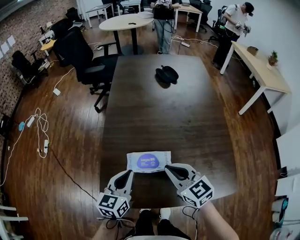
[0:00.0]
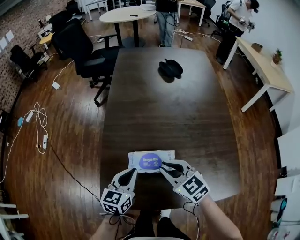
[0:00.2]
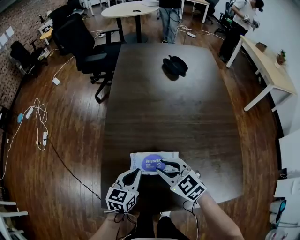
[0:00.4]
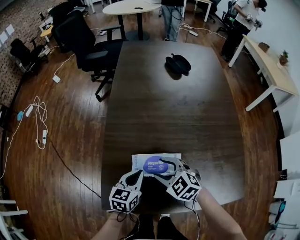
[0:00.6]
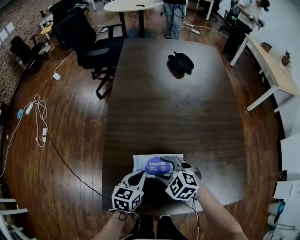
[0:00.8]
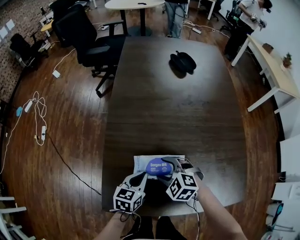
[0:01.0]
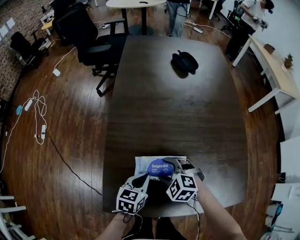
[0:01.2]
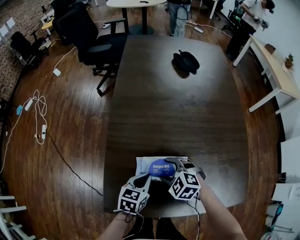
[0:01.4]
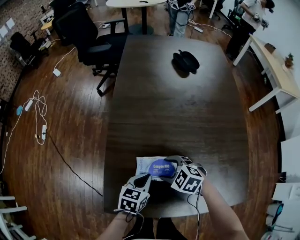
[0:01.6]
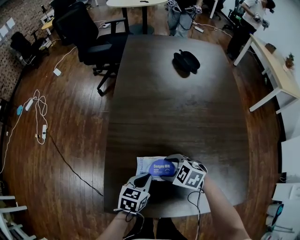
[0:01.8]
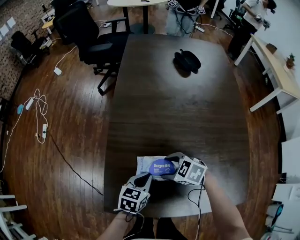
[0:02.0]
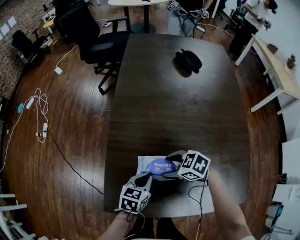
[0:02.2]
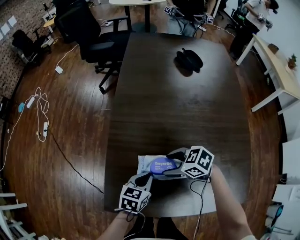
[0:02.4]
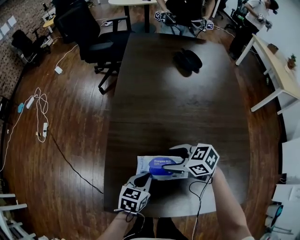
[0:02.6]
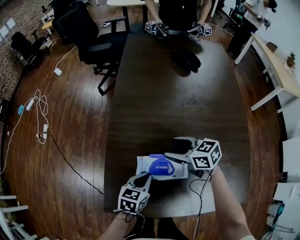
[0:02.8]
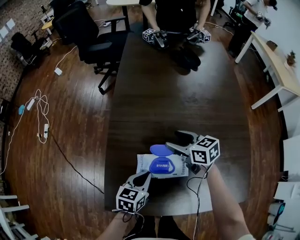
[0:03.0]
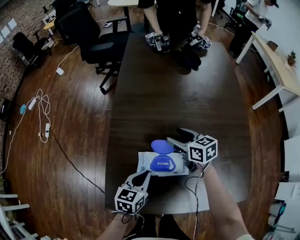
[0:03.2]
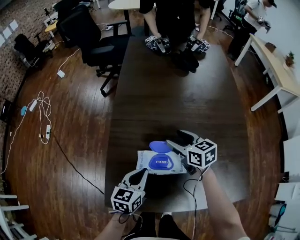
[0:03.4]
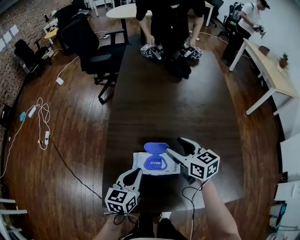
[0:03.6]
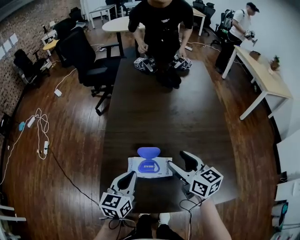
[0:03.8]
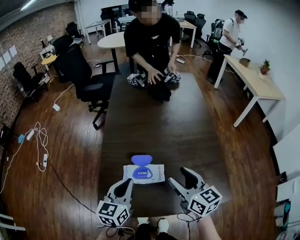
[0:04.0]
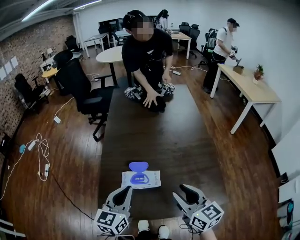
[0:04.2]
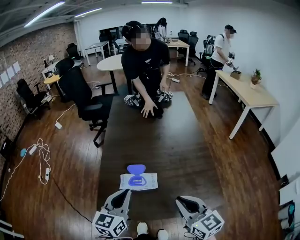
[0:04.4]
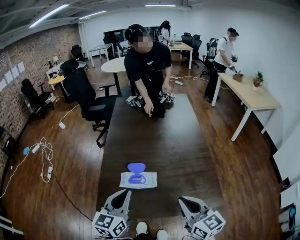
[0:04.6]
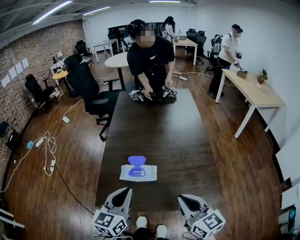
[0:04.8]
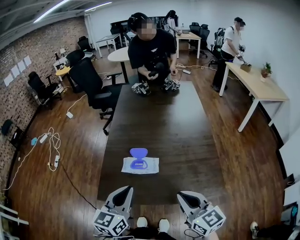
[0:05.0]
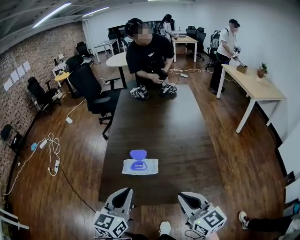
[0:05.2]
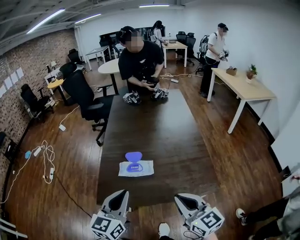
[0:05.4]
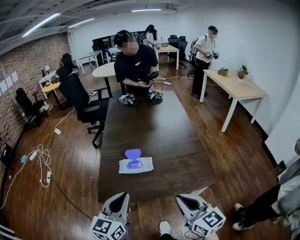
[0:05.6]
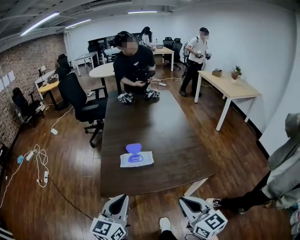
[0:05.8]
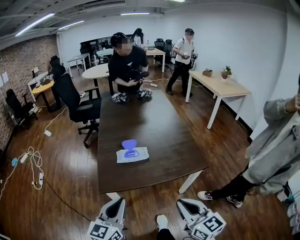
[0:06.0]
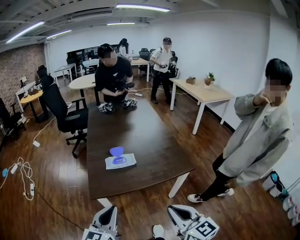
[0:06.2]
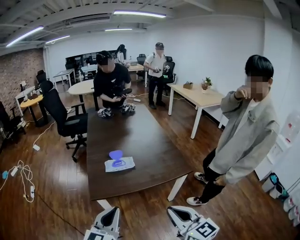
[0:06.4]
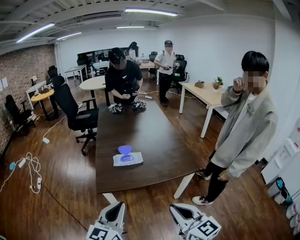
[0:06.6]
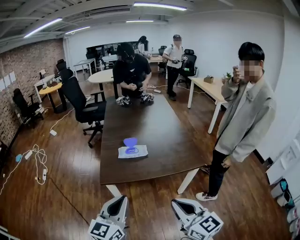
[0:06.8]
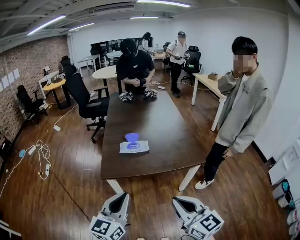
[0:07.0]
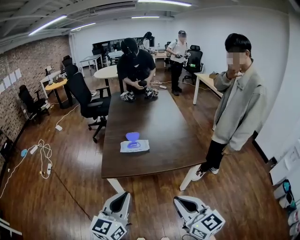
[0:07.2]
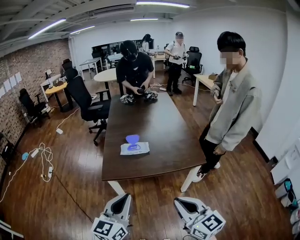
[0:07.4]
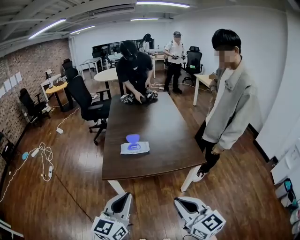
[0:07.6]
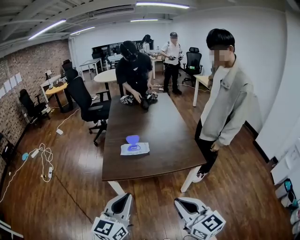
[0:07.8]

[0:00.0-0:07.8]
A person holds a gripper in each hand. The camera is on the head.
0:00.0 to 0:01.6: The grippers both shift downward by roughly 15 cm. The left gripper swivels about 30 degrees. The right gripper points its fingers approximately 40 degrees further downward, and opens.
0:01.6 to 0:03.2: The right gripper shifts by approximately 15 cm, and swivels about 50 degrees.
0:03.2 to 0:04.6: The right gripper moves backward and upward, some 40 cm, turns by approximately 30 degrees, and closes its fingers. Meanwhile the left gripper goes about 30 cm upward and backward, and changes its angle by roughly 30 degrees.
0:04.6 to 0:06.2: Both grippers travel together backward, some 30 cm.
0:06.2 to 0:07.8: The right gripper heads backward, covering some 5 cm. The left gripper travels backward and to the right by approximately 10 cm.

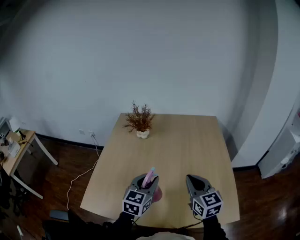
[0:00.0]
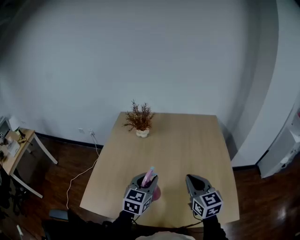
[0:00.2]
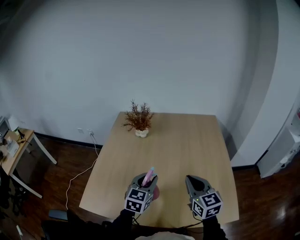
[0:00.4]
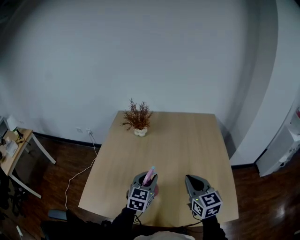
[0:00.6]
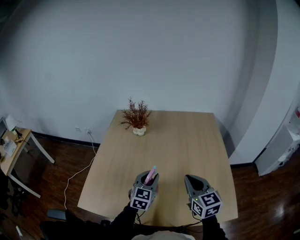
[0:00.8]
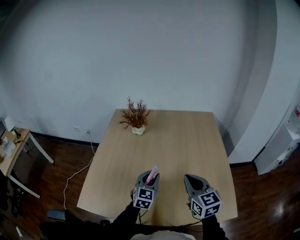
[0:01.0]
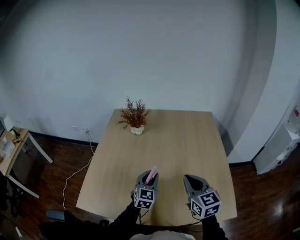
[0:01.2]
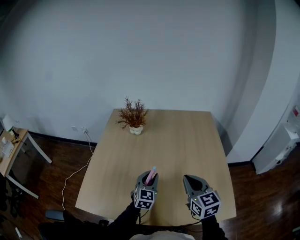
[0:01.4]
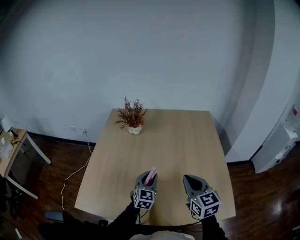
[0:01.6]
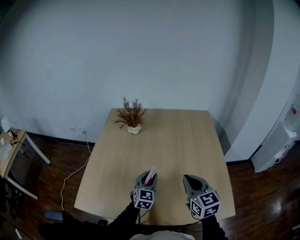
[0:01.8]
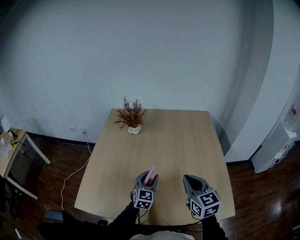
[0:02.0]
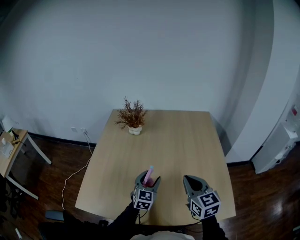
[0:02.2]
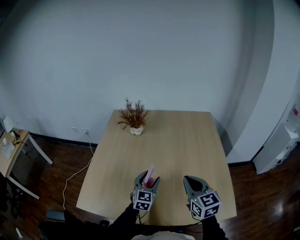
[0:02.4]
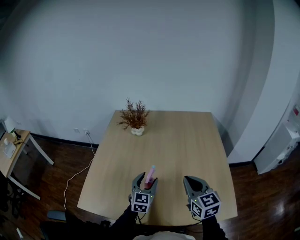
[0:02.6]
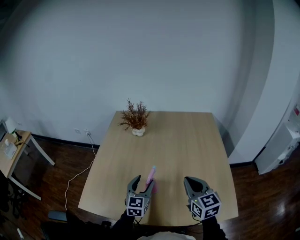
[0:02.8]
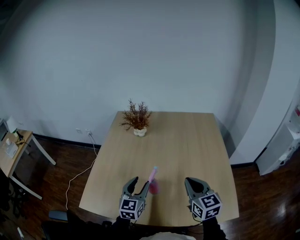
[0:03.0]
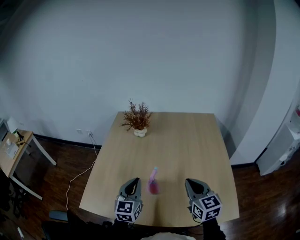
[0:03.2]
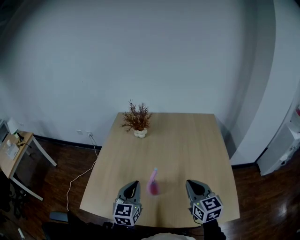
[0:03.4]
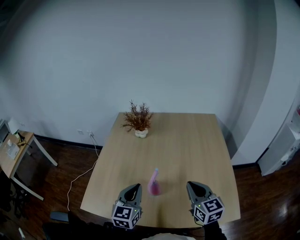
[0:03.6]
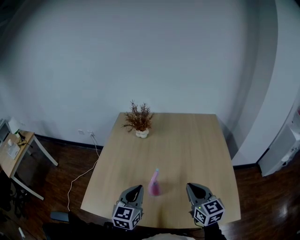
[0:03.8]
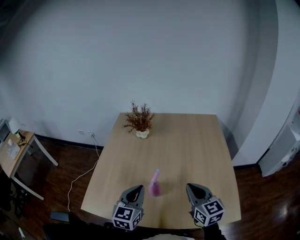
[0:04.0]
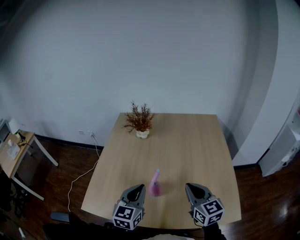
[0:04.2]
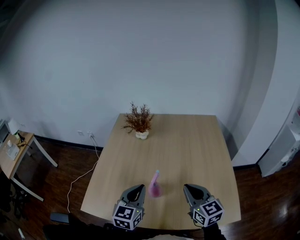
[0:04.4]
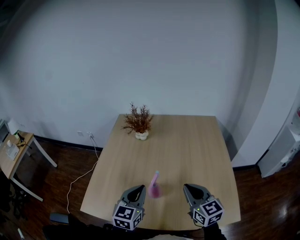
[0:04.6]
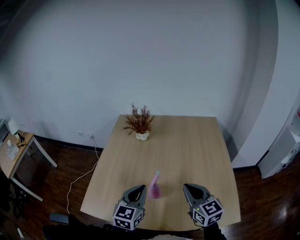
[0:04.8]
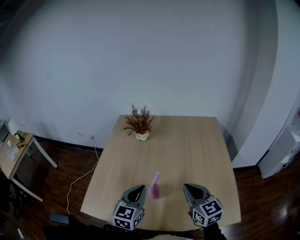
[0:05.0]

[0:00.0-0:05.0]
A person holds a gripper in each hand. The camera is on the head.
0:00.0 to 0:01.6: The left gripper heads downward and forward, covering about 10 cm.
0:01.6 to 0:03.4: The left gripper travels upward, to the left and backward by some 15 cm, and closes.
0:03.4 to 0:05.0: The grippers make only small movements.

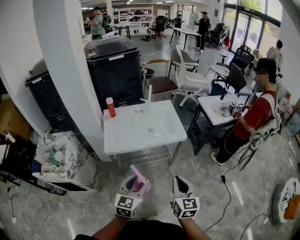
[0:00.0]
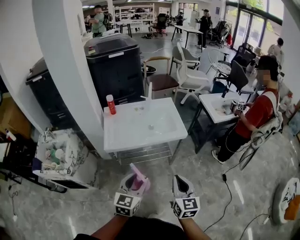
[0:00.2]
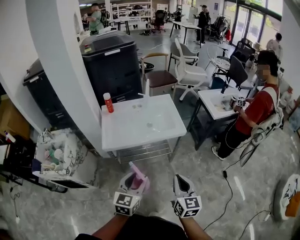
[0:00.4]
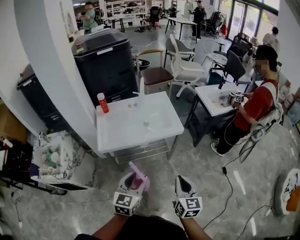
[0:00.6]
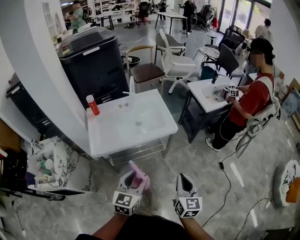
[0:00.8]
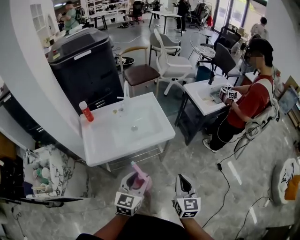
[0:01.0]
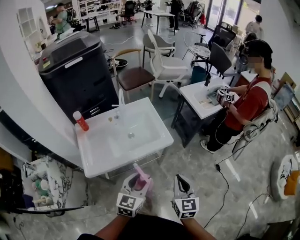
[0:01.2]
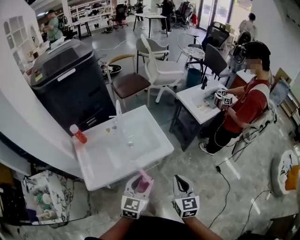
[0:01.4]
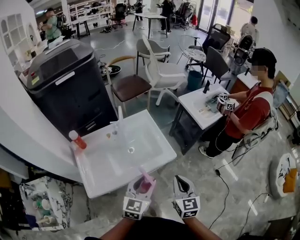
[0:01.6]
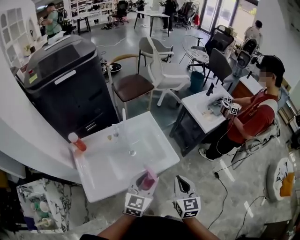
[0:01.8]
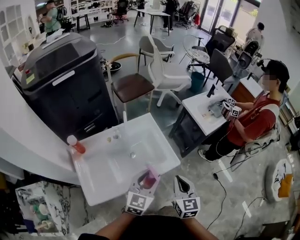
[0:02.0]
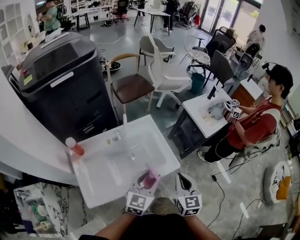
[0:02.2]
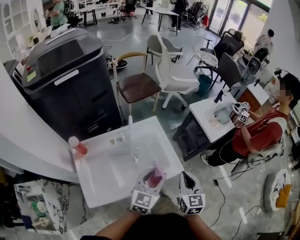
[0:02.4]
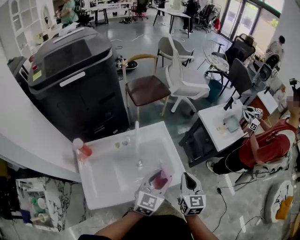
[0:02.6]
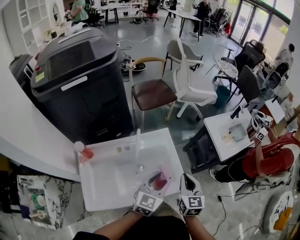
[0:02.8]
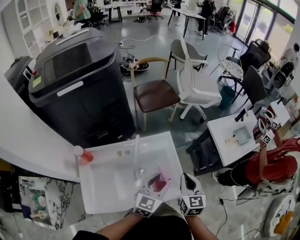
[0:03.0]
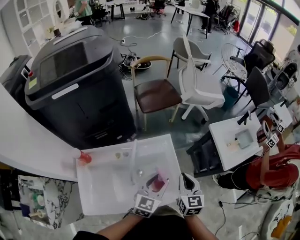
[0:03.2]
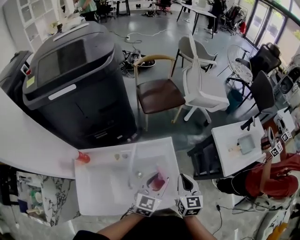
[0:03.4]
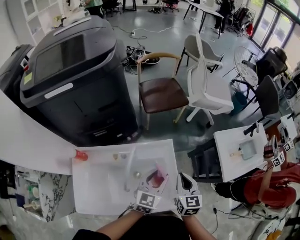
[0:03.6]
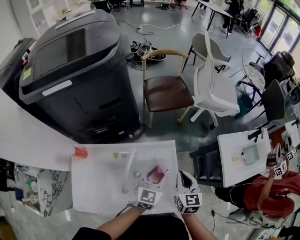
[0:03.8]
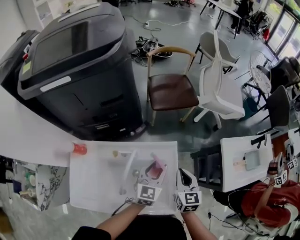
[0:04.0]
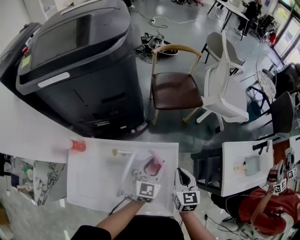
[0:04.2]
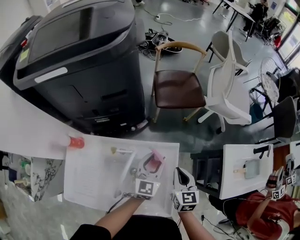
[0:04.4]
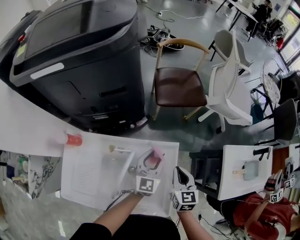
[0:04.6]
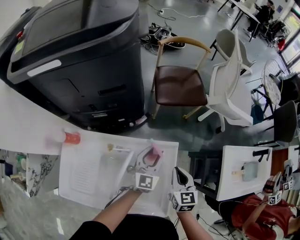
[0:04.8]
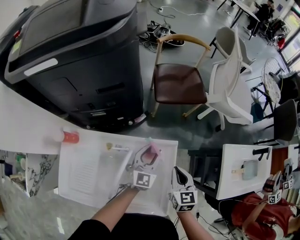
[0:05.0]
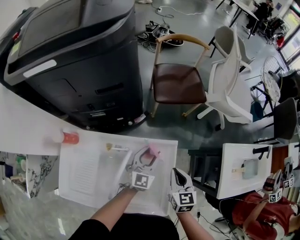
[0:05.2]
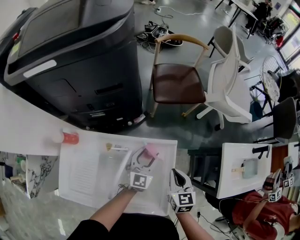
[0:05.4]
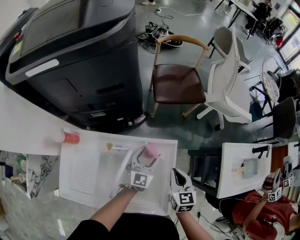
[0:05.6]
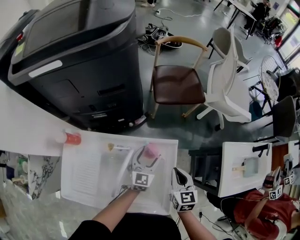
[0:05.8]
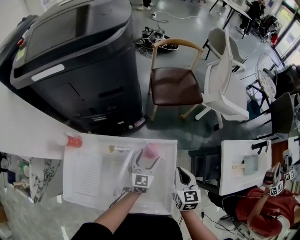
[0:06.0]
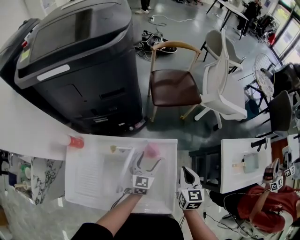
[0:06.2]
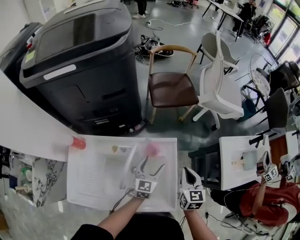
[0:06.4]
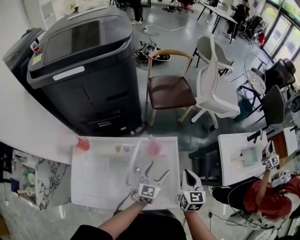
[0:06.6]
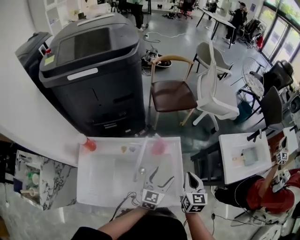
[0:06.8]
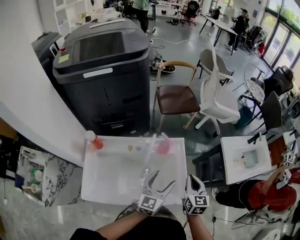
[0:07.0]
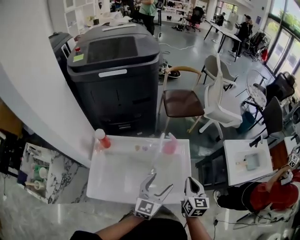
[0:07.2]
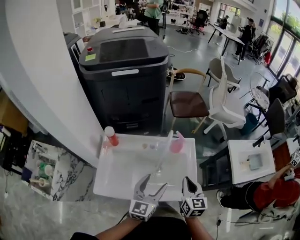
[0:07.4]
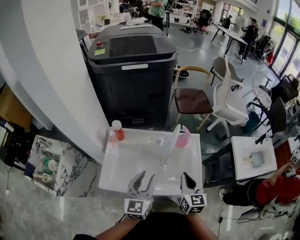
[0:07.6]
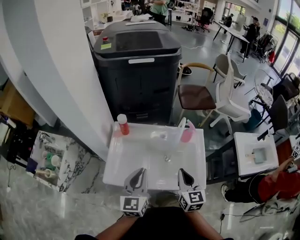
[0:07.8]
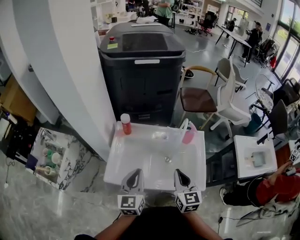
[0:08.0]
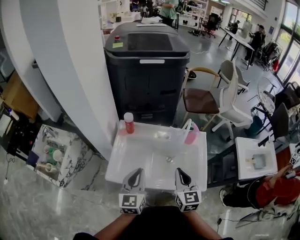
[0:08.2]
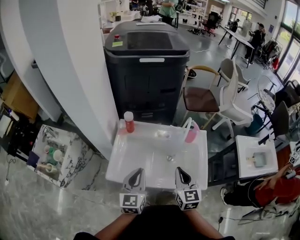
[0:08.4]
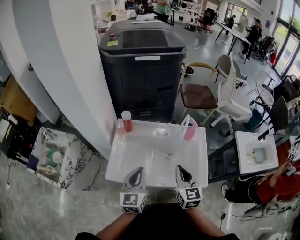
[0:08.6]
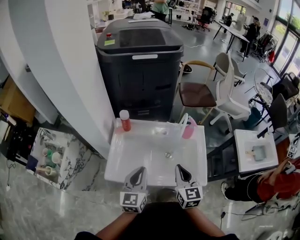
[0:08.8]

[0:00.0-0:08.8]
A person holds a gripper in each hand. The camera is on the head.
0:00.0 to 0:01.4: The grippers both shift forward by about 25 cm.
0:01.4 to 0:03.0: Both grippers travel together forward, about 35 cm.
0:03.0 to 0:04.4: The left gripper shifts by approximately 25 cm, and swivels about 30 degrees; the right gripper changes place by roughly 25 cm, and turns by roughly 20 degrees.
0:04.4 to 0:05.8: The left gripper goes approximately 10 cm downward, and opens its fingers.
0:05.8 to 0:07.4: The two grippers go approximately 30 cm backward and upward.
0:07.4 to 0:08.8: The two grippers go roughly 15 cm to the left. The left gripper closes up.

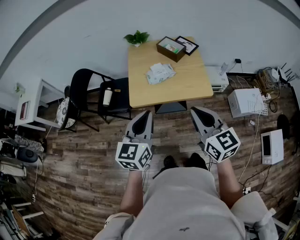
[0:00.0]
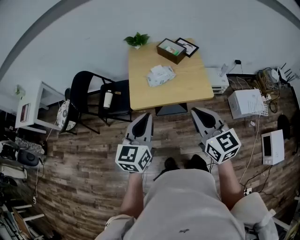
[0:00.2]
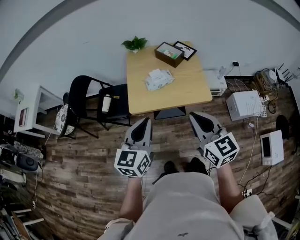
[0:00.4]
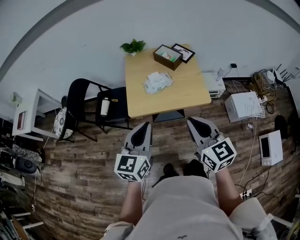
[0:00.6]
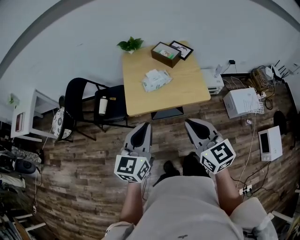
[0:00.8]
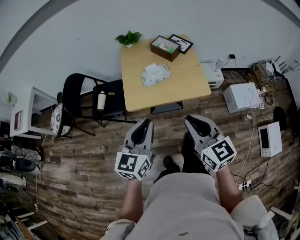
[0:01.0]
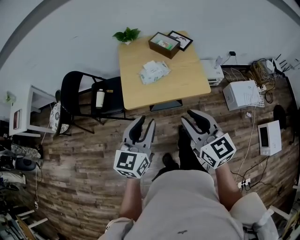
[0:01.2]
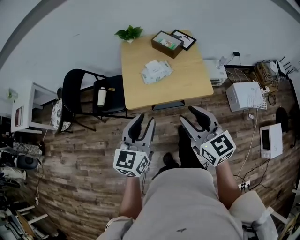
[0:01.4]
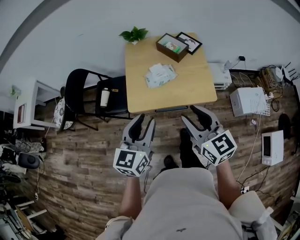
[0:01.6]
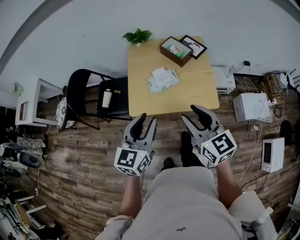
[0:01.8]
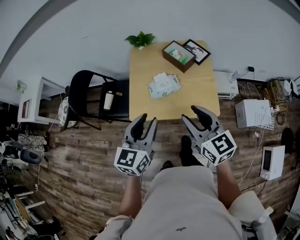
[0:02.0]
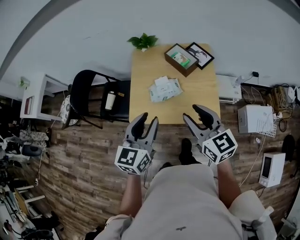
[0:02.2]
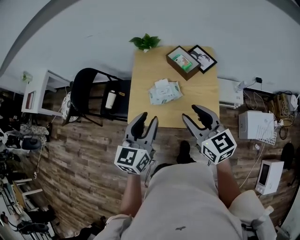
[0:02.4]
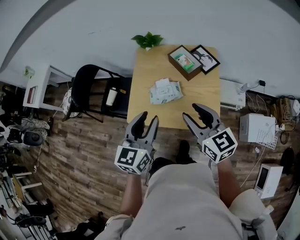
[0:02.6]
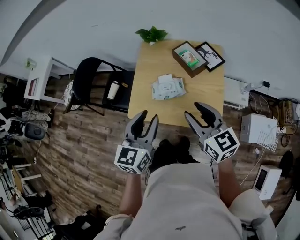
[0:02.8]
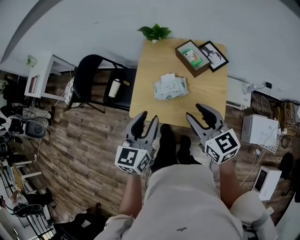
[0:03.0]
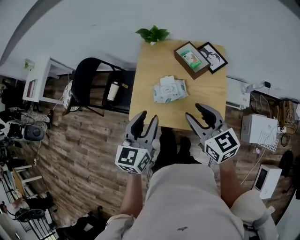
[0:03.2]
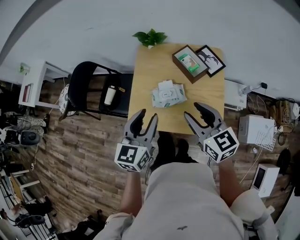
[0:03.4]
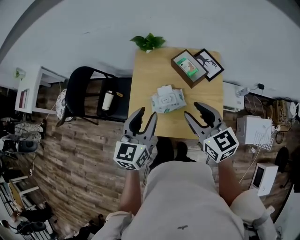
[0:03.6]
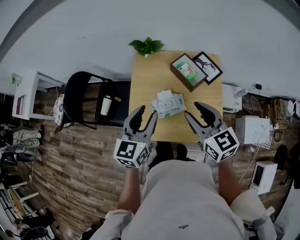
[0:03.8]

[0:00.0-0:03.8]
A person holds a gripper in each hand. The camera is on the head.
0:00.0 to 0:01.2: The right gripper opens up. Meanwhile the left gripper opens its fingers.
0:01.2 to 0:02.6: The two grippers go about 25 cm forward and to the right.
0:02.6 to 0:03.8: Both grippers travel together forward, about 15 cm.
